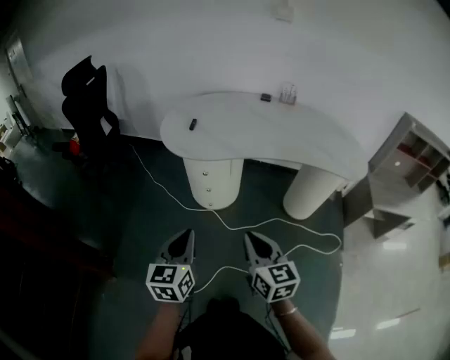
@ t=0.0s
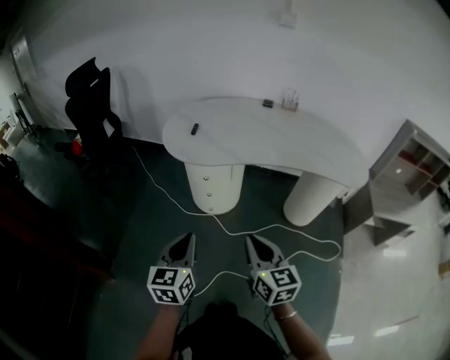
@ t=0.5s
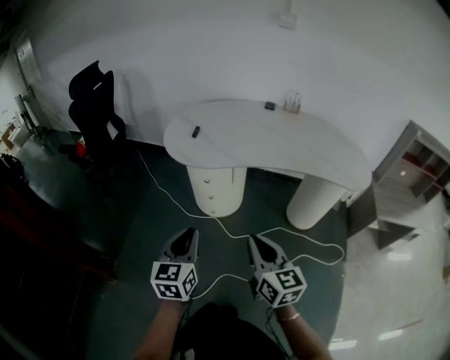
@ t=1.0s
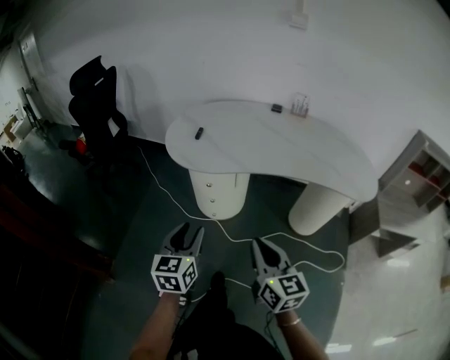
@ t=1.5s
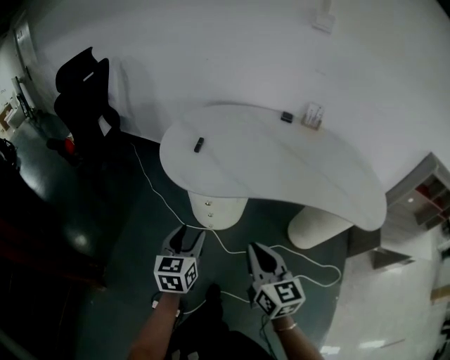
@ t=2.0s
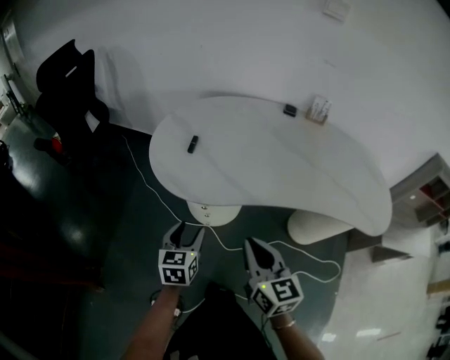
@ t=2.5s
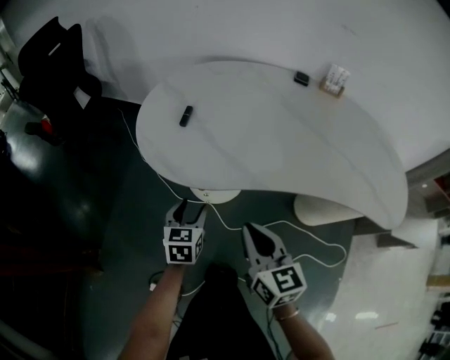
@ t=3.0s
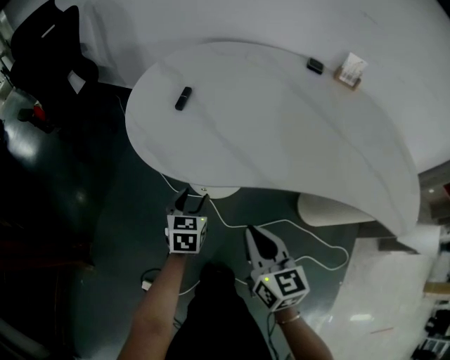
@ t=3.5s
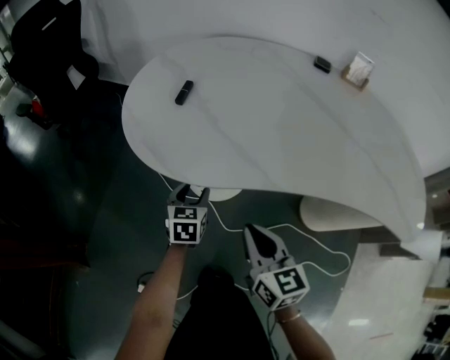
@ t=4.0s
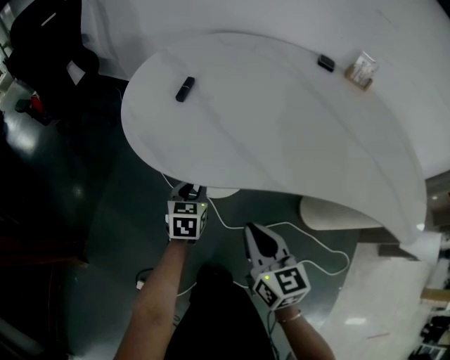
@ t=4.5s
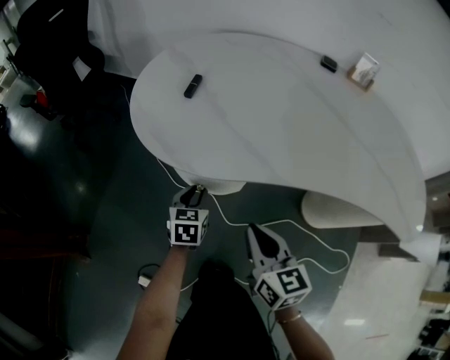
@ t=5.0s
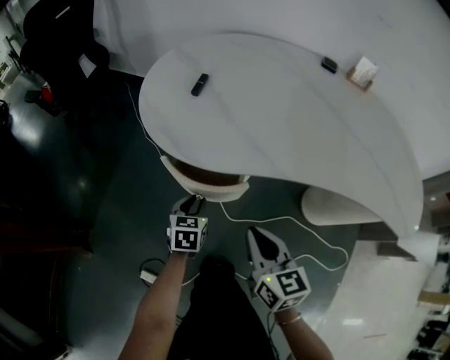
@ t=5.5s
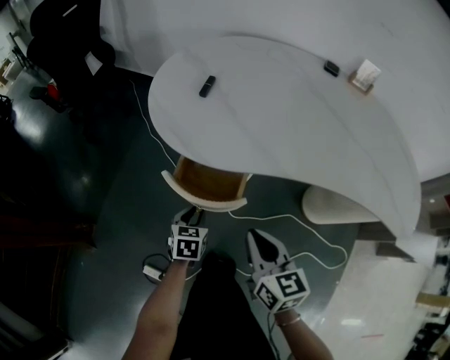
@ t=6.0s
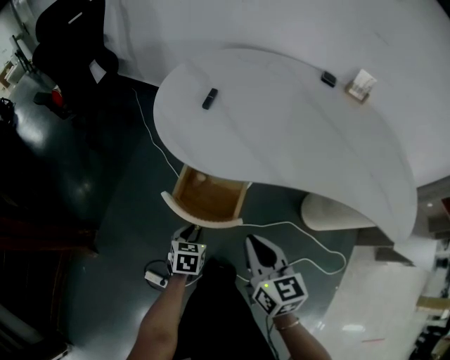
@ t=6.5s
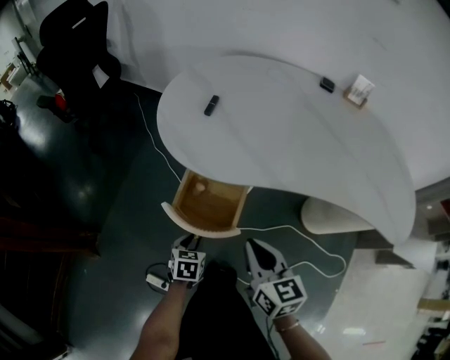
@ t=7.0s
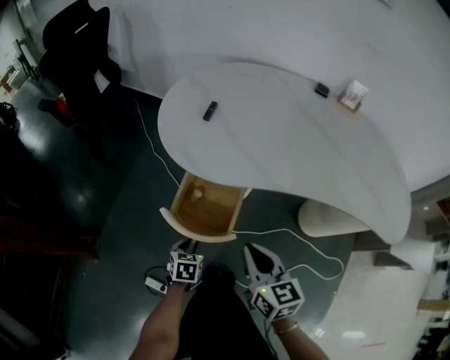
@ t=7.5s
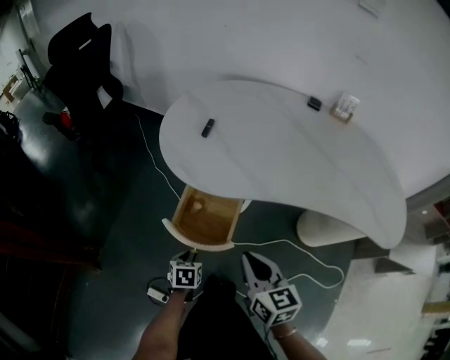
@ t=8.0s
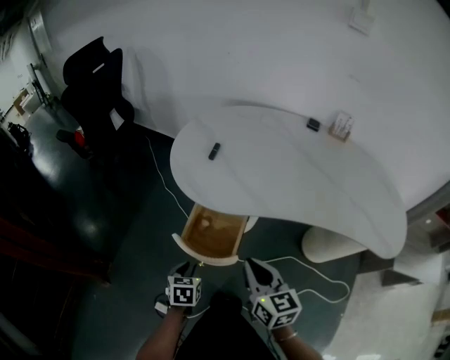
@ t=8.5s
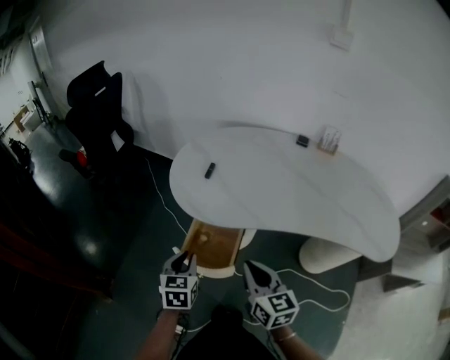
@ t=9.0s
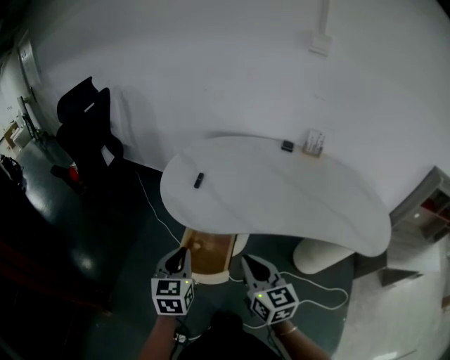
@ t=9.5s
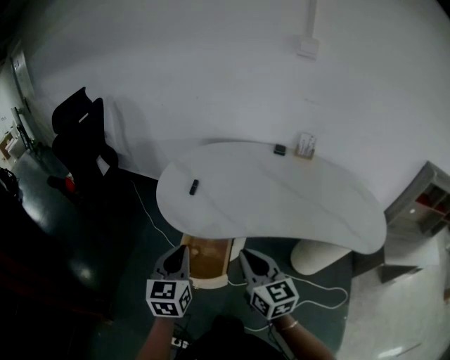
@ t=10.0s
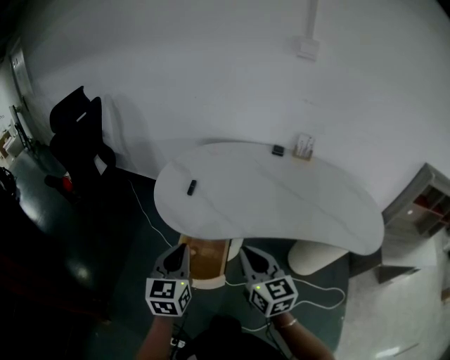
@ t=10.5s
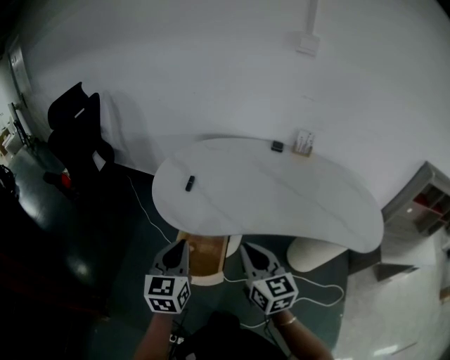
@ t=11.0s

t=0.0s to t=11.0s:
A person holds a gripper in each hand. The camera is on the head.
t=0.0s to t=2.0s: The grippers both shift forward by about 20 cm. The left gripper opens.
t=2.0s to t=3.5s: Both grippers move downward and forward, roughly 25 cm.
t=3.5s to t=5.5s: The left gripper ends up roughly 5 cm from where it was, and closes.
t=5.5s to t=7.5s: The right gripper travels upward by roughly 5 cm, while the left gripper shifts some 15 cm backward.
t=7.5s to t=9.0s: The left gripper shifts approximately 25 cm upward, and rotates about 30 degrees, while the right gripper goes about 10 cm upward.
t=9.0s to t=11.0s: The left gripper travels upward by about 15 cm, and rotates some 20 degrees. The right gripper travels upward by some 5 cm.

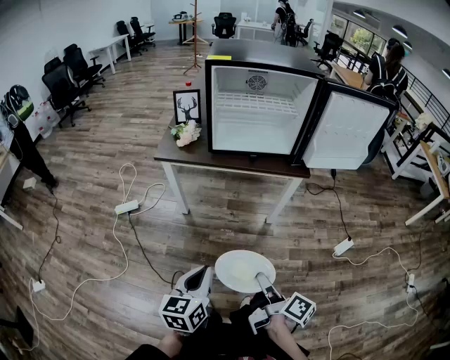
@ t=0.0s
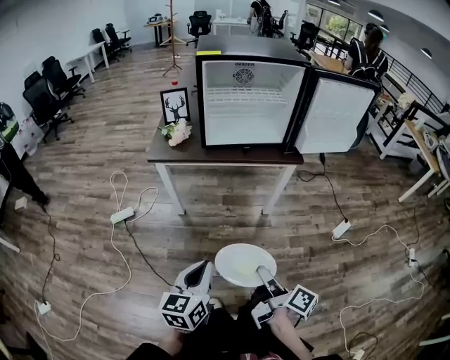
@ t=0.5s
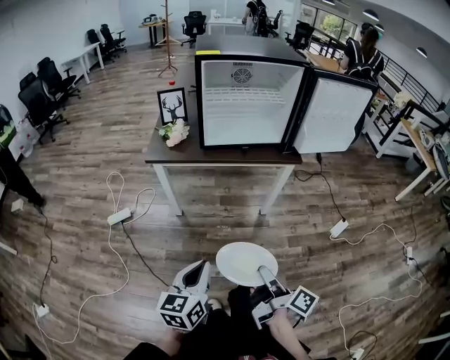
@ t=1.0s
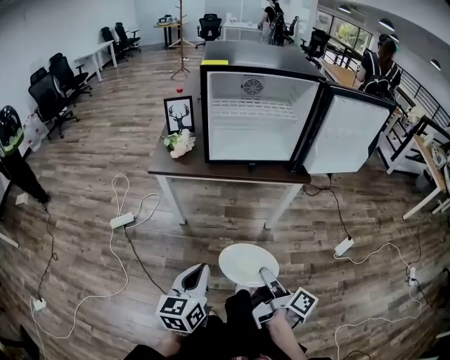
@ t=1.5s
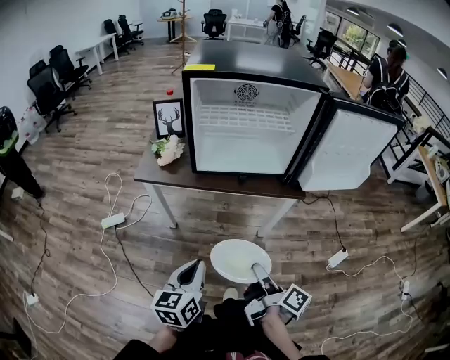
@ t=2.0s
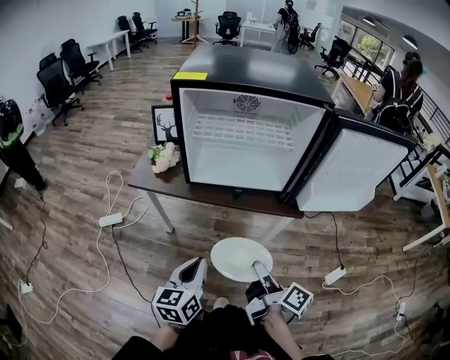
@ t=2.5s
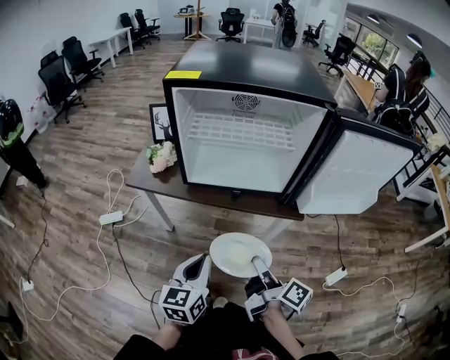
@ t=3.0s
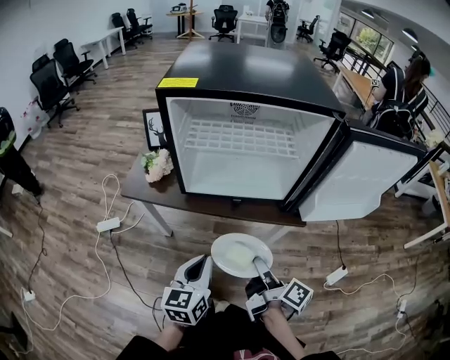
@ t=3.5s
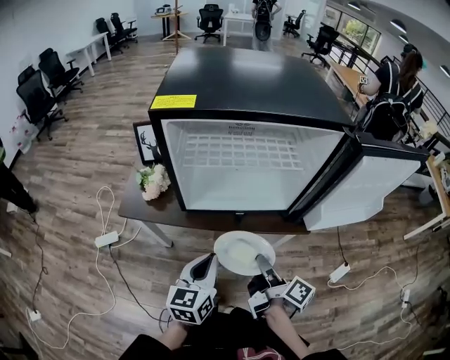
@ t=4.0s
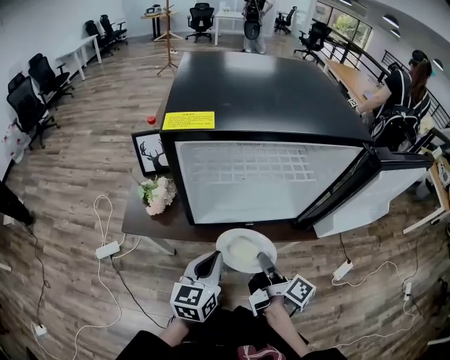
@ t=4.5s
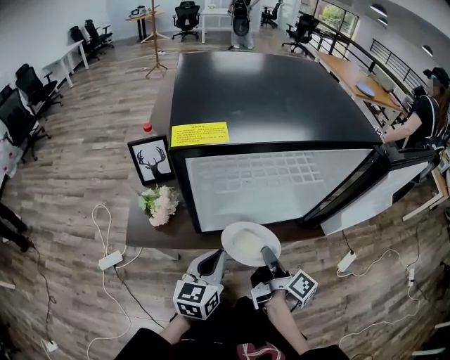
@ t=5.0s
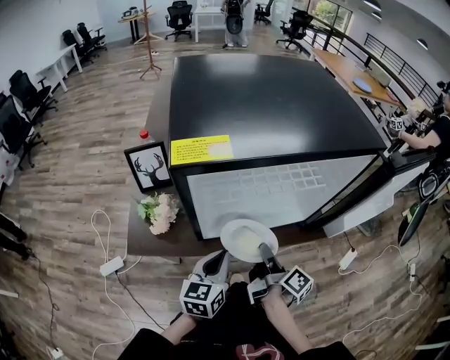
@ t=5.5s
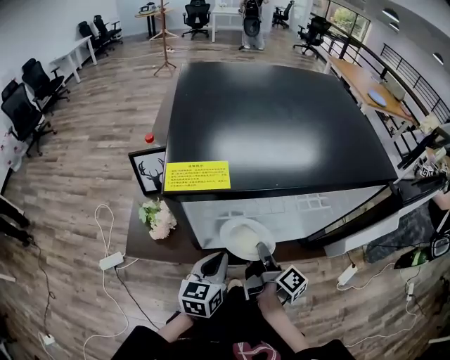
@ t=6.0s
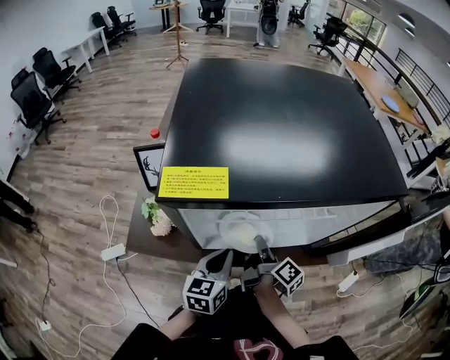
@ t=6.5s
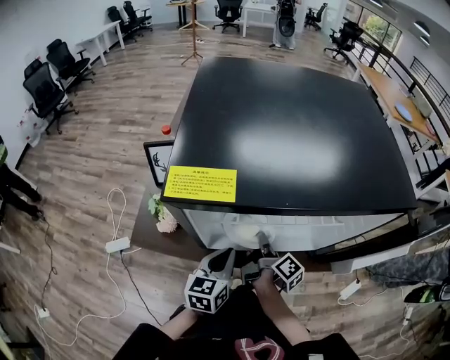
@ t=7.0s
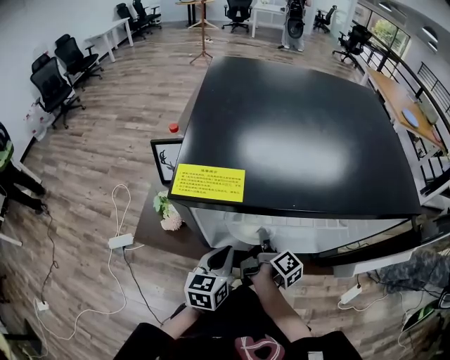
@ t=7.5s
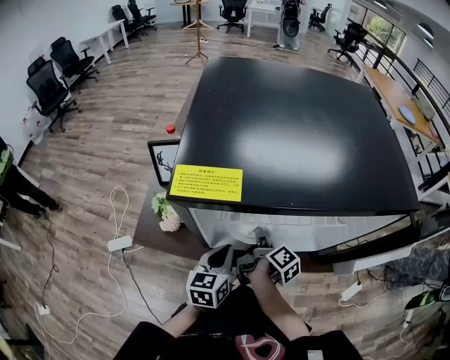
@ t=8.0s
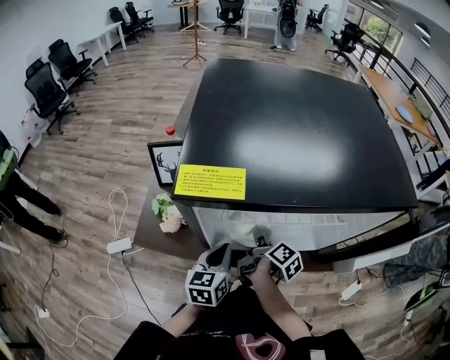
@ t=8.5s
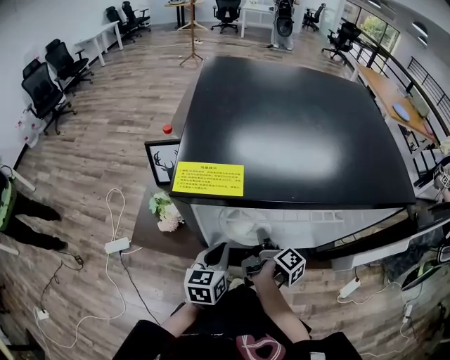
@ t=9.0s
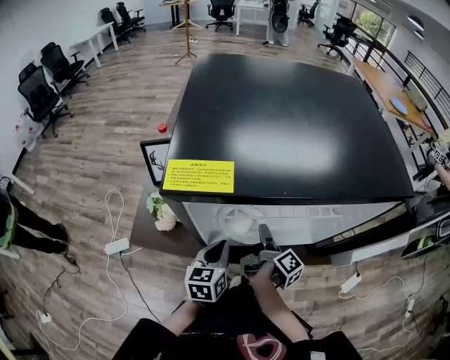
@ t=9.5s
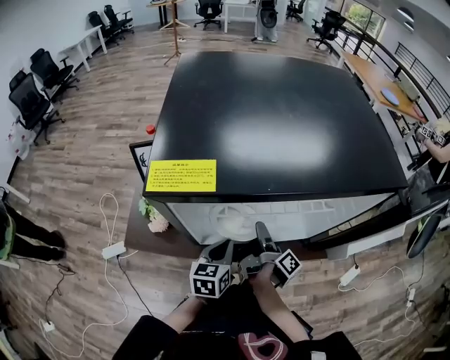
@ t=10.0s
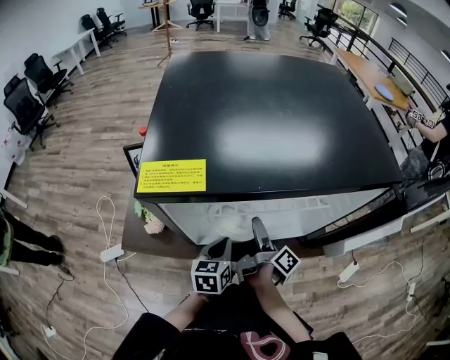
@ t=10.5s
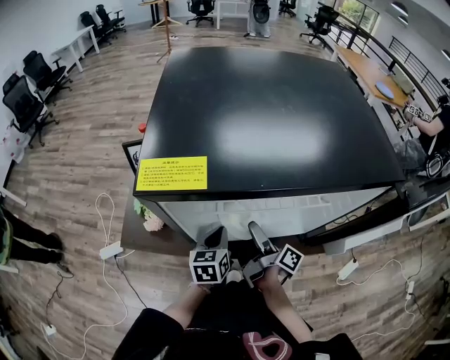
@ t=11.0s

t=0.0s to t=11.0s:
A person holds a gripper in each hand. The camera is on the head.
t=0.0s to t=2.0s: The left gripper changes place by about 15 cm.
t=2.0s to t=3.5s: The left gripper moves about 15 cm.
t=3.5s to t=5.5s: The left gripper moves approximately 20 cm.
t=5.5s to t=7.5s: The left gripper changes place by some 5 cm.
t=9.0s to t=11.0s: The left gripper shifts by roughly 5 cm.

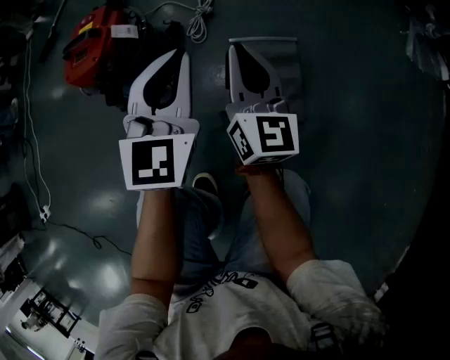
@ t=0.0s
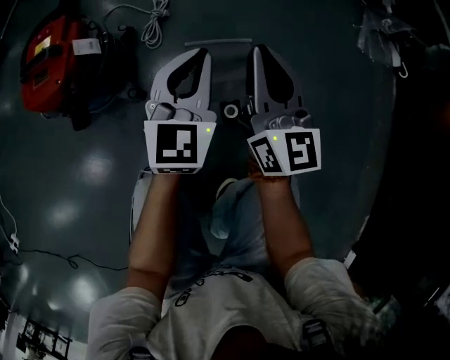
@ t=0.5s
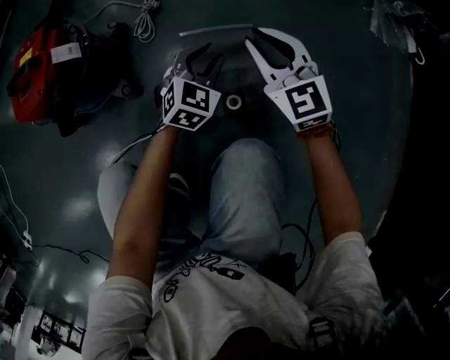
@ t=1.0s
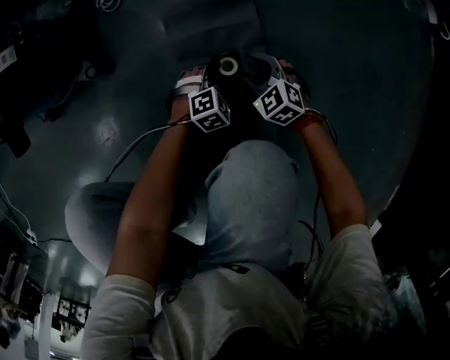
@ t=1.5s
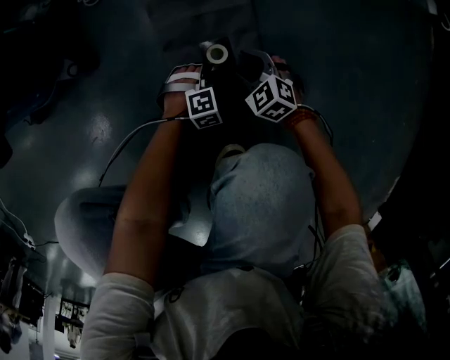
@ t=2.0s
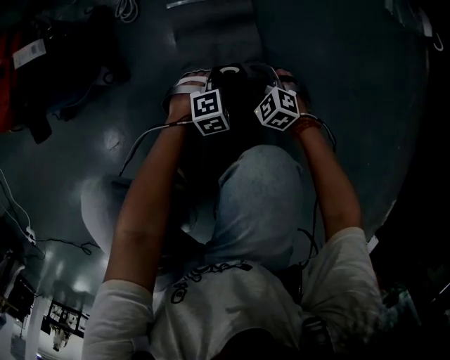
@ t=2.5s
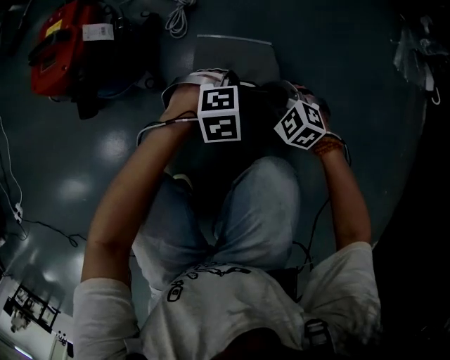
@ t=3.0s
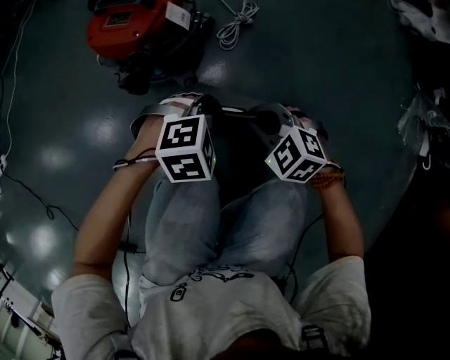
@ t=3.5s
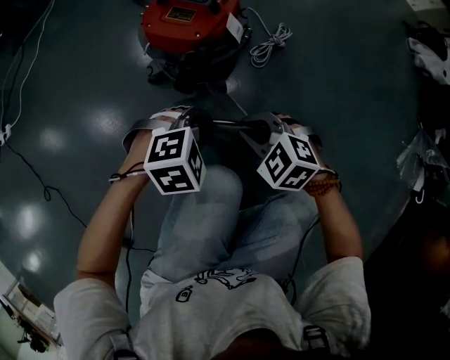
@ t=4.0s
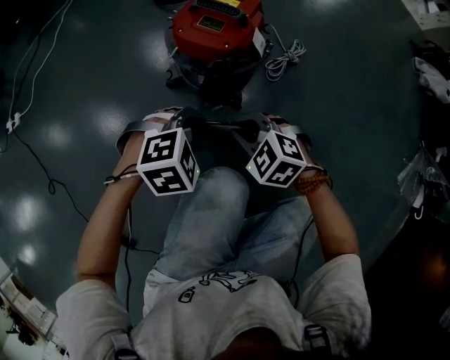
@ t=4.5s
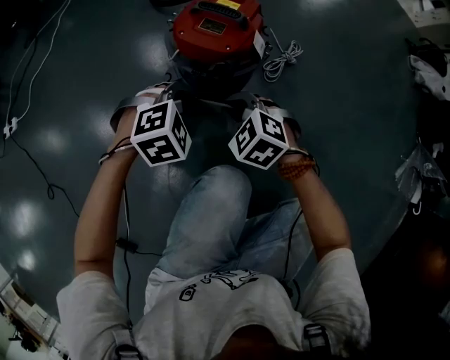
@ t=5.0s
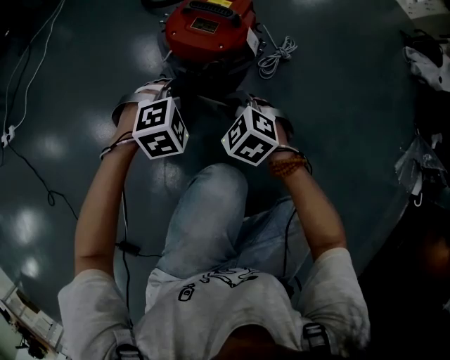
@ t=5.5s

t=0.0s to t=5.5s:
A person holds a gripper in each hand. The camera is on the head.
t=0.0s to t=2.0s: Both grippers travel together downward, approximately 50 cm. The right gripper tilts its fingers about 60 degrees downward, and opens its fingers. Meanwhile the left gripper points its fingers about 60 degrees further downward, and opens, then closes once more.
t=2.0s to t=3.5s: Both grippers move upward and to the left, approximately 40 cm. The right gripper turns by approximately 40 degrees, and closes, while the left gripper changes its angle by about 20 degrees.
t=3.5s to t=5.5s: Both grippers travel together to the left and forward, some 25 cm.
